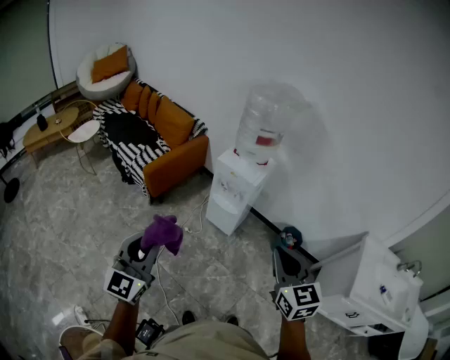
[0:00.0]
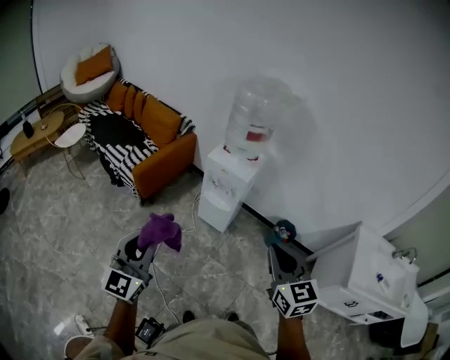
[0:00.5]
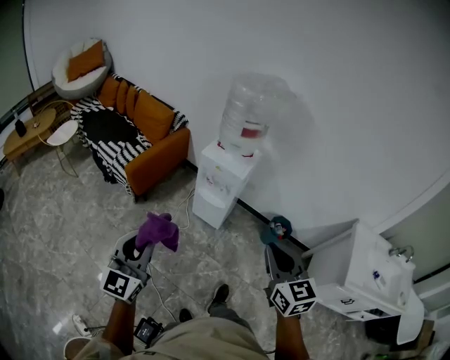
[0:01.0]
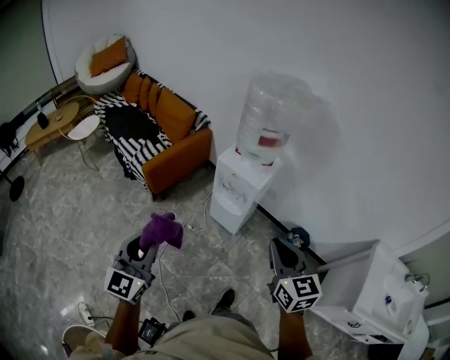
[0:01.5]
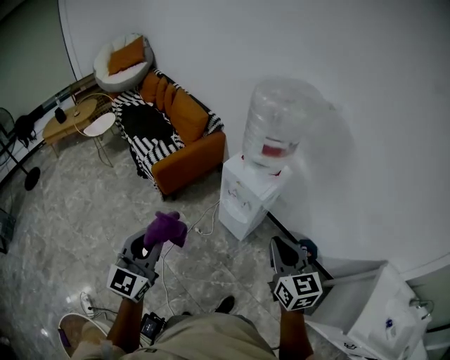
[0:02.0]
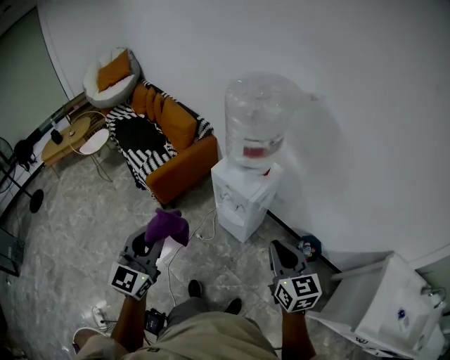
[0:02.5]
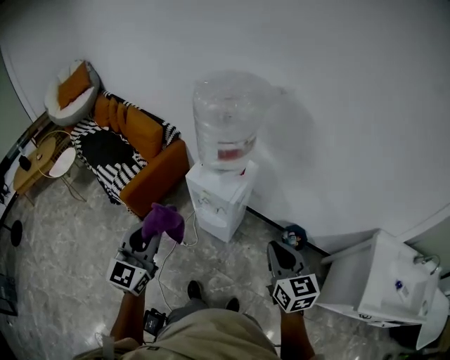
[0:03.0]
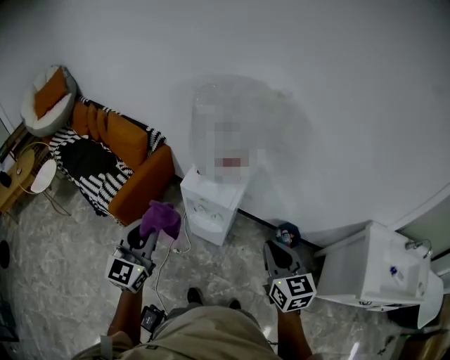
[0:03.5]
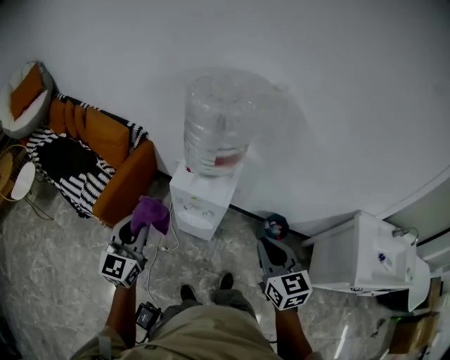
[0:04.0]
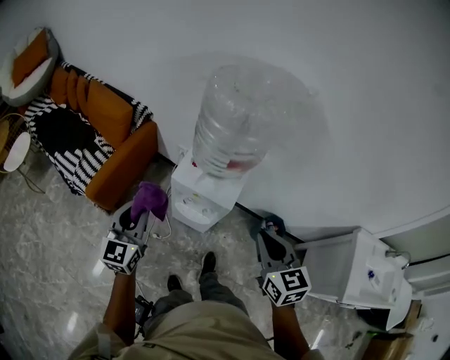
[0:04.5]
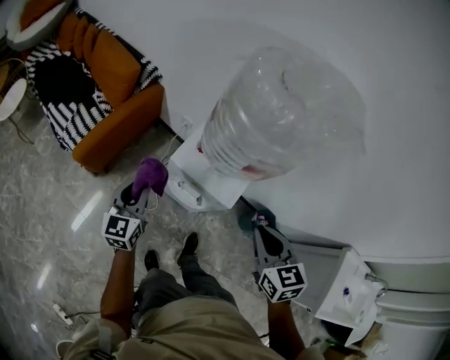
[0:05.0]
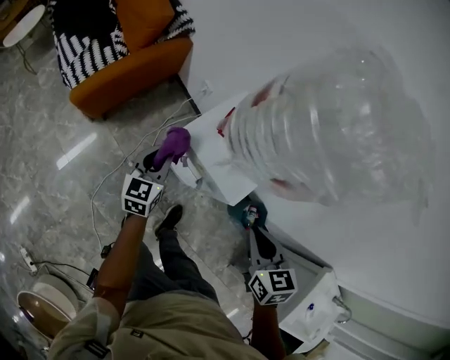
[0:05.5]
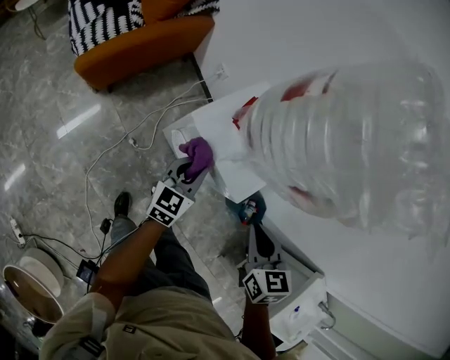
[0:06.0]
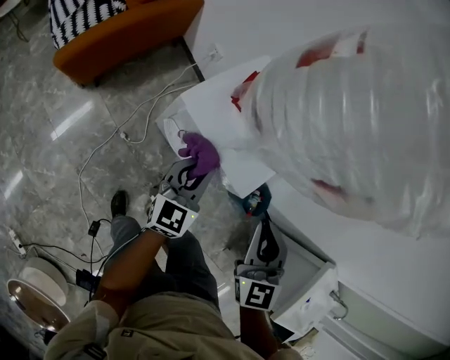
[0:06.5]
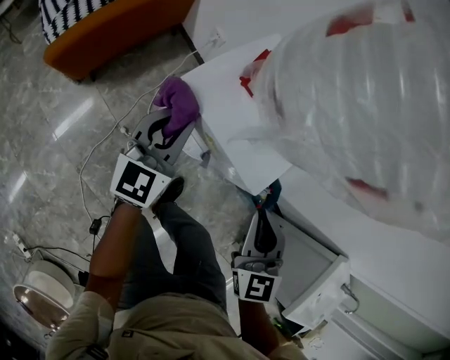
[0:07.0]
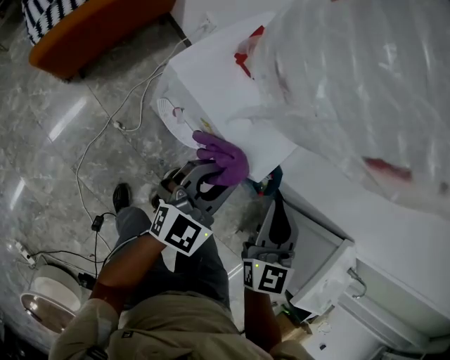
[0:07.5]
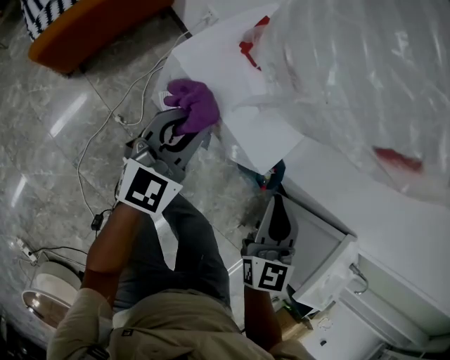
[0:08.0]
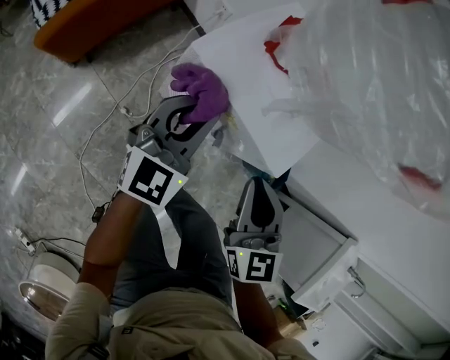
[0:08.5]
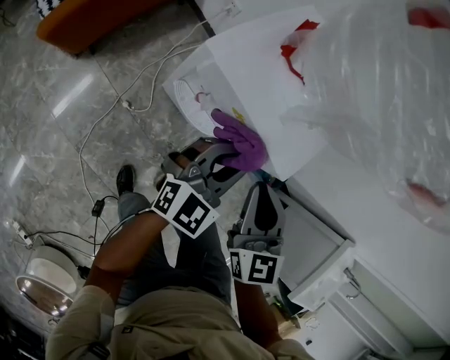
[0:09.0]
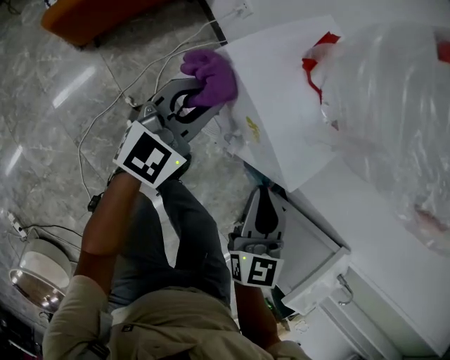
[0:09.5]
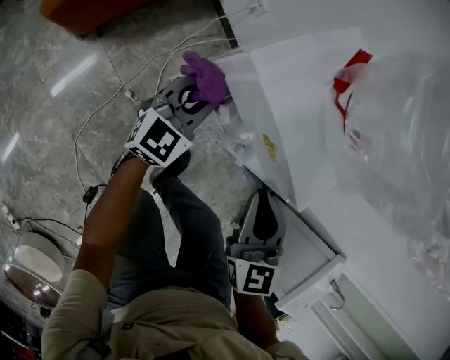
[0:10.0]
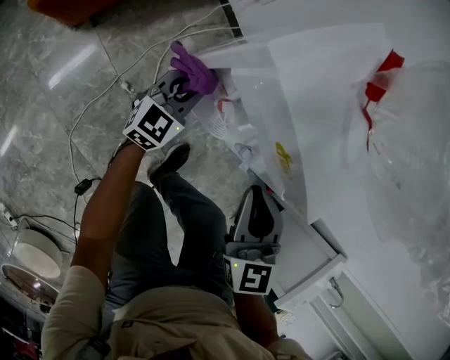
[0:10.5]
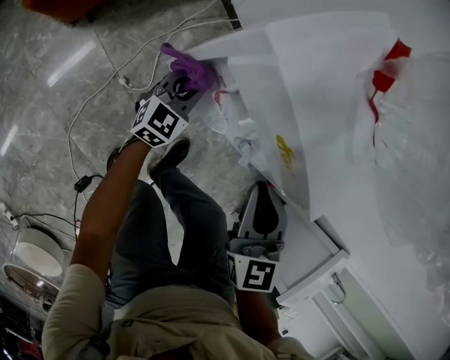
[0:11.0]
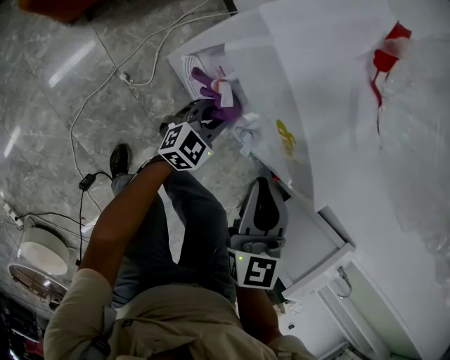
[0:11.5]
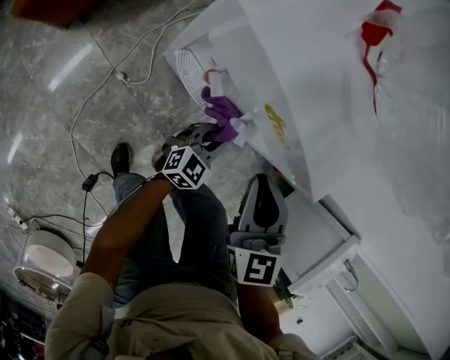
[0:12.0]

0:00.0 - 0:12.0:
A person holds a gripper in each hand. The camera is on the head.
0:00.0 - 0:02.0: The left gripper heads forward and to the right, covering approximately 15 cm, while the right gripper moves forward, approximately 20 cm.
0:02.0 - 0:04.0: The left gripper travels forward by some 30 cm, and turns by some 20 degrees. Meanwhile the right gripper heads forward, covering some 10 cm, goes to the right and returns, roughly 5 cm each way, and rotates some 30 degrees.
0:04.0 - 0:06.0: The right gripper heads downward and forward, covering roughly 30 cm, and changes its angle by approximately 30 degrees. The left gripper moves downward, to the right and forward, roughly 40 cm, and changes its angle by some 30 degrees.
0:06.0 - 0:08.0: The left gripper swings left and right, about 15 cm each way, with 2 reversals, and rotates roughly 30 degrees; the right gripper moves downward, roughly 10 cm, and swivels about 30 degrees.
0:08.0 - 0:10.0: The left gripper goes about 15 cm downward. Meanwhile the right gripper moves to the left and downward, approximately 15 cm.
0:10.0 - 0:12.0: The right gripper moves approximately 5 cm, while the left gripper travels to the right, downward and backward by about 30 cm, and swivels about 20 degrees.

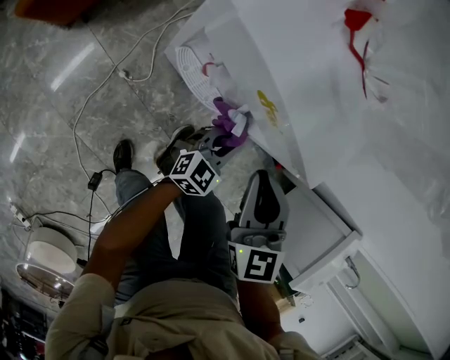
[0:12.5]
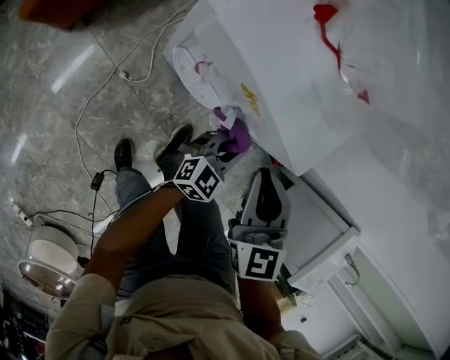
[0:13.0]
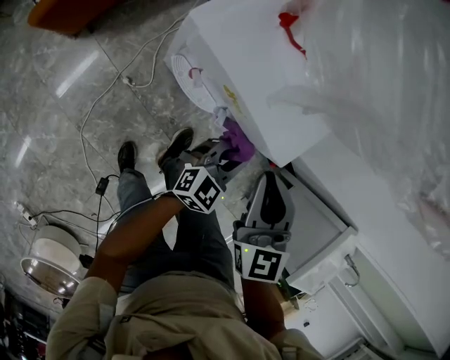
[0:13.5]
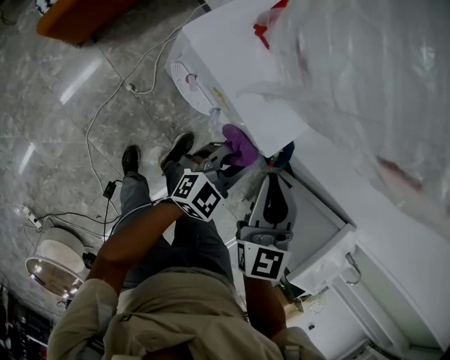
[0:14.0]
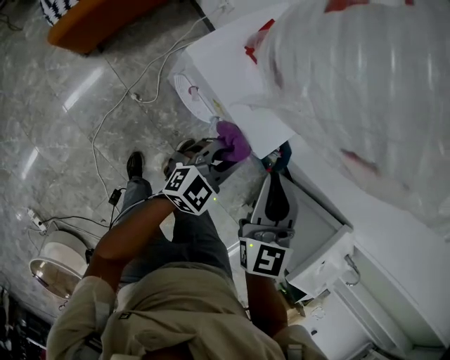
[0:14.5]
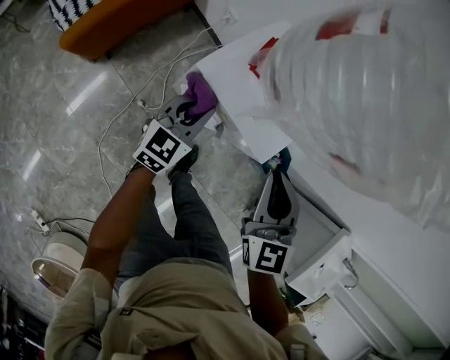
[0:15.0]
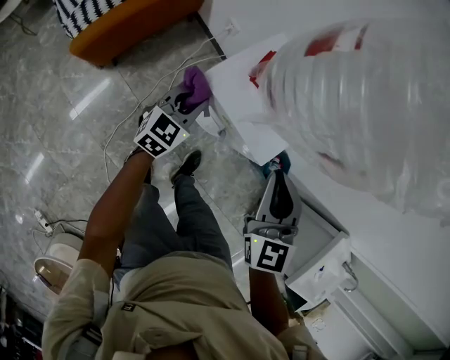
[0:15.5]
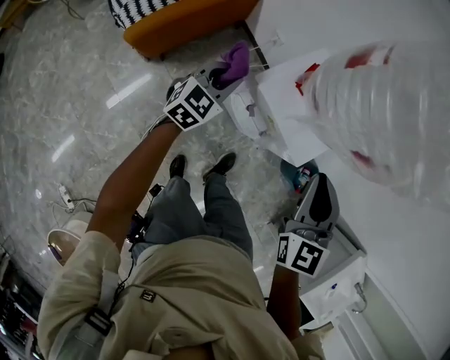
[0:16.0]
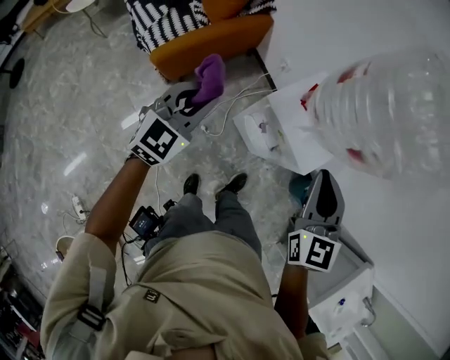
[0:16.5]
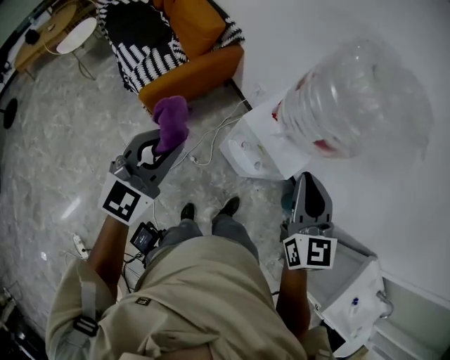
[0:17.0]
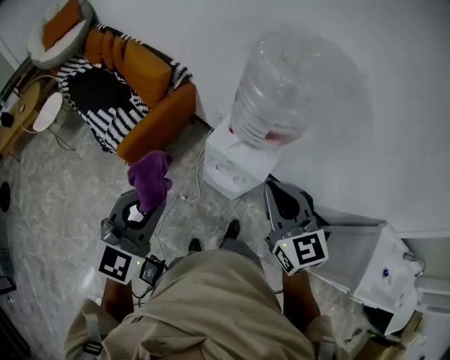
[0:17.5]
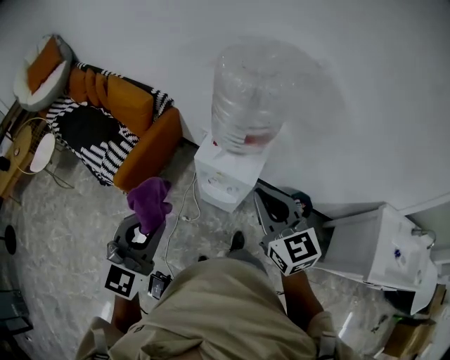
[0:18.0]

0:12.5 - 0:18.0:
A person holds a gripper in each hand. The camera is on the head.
0:12.5 - 0:14.5: Both grippers travel together upward, roughly 20 cm.
0:14.5 - 0:16.0: The left gripper goes some 30 cm to the left, and changes its angle by about 20 degrees; the right gripper moves upward and to the left, about 10 cm.
0:16.0 - 0:18.0: The right gripper travels upward and backward by about 20 cm. The left gripper goes roughly 50 cm upward and backward, and swivels approximately 30 degrees.

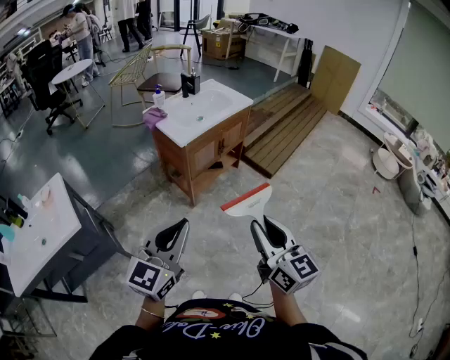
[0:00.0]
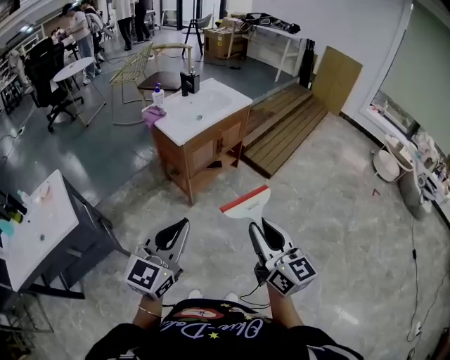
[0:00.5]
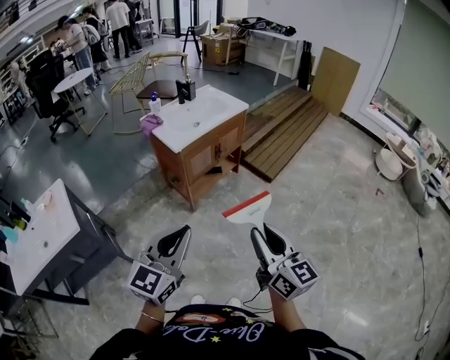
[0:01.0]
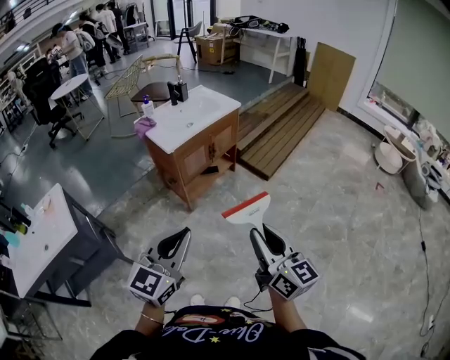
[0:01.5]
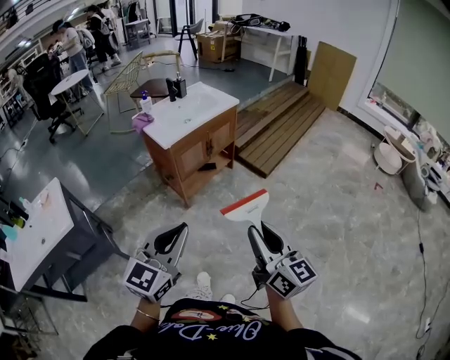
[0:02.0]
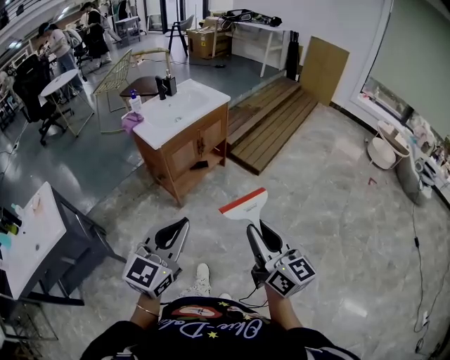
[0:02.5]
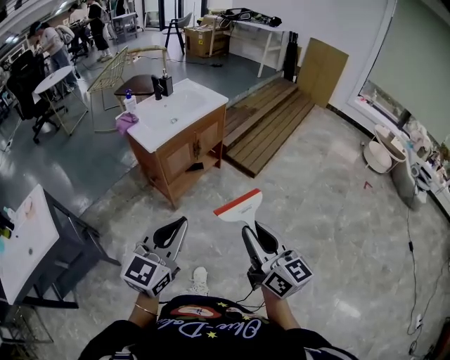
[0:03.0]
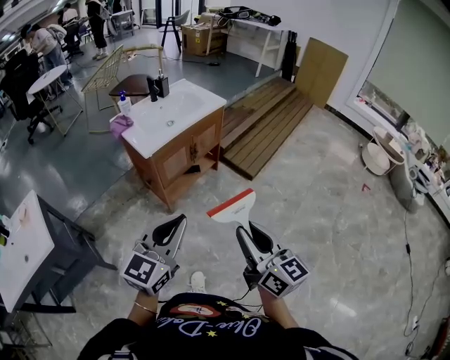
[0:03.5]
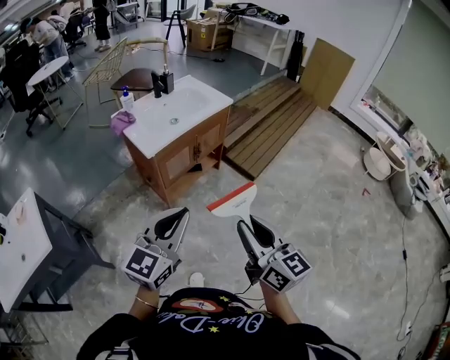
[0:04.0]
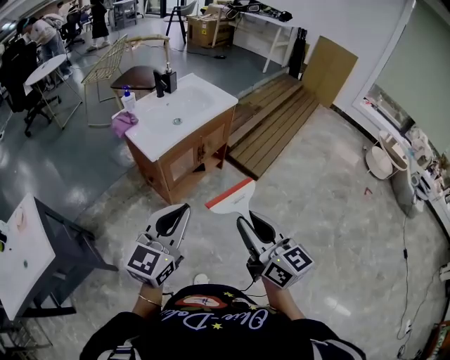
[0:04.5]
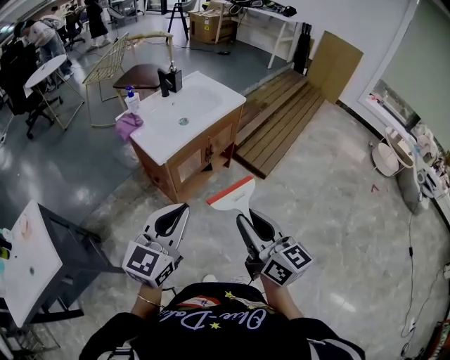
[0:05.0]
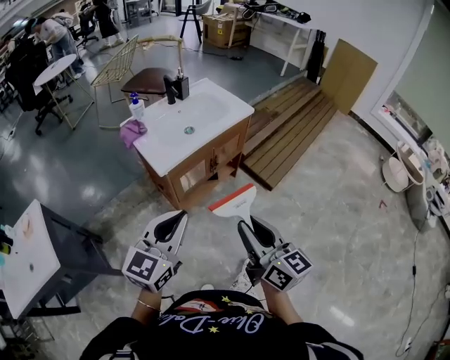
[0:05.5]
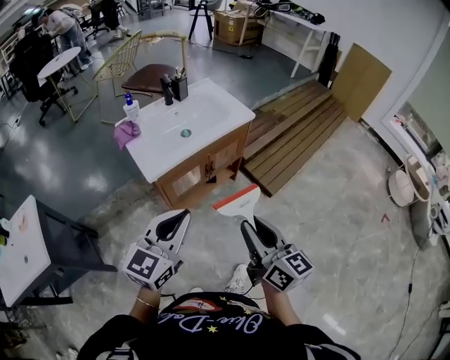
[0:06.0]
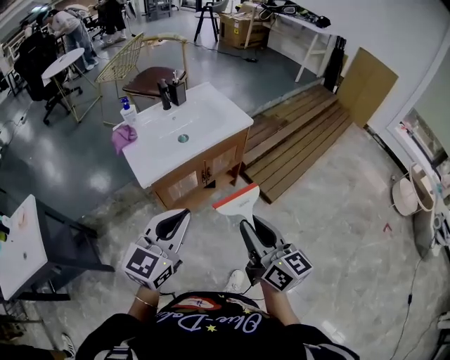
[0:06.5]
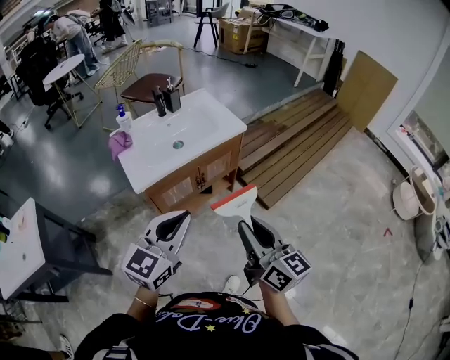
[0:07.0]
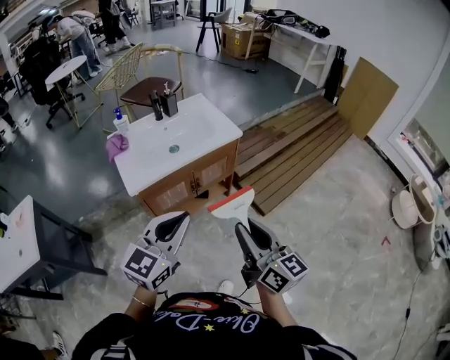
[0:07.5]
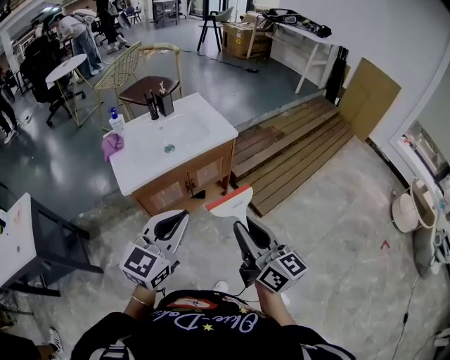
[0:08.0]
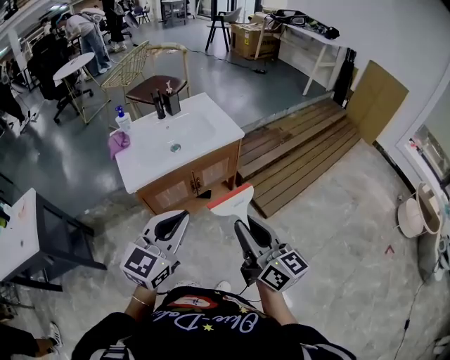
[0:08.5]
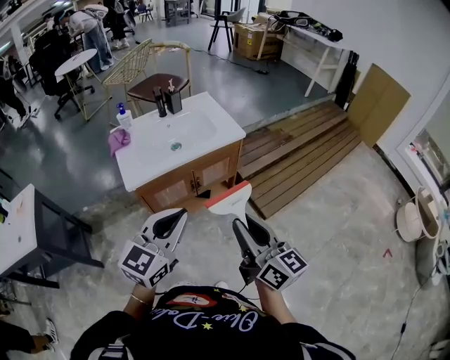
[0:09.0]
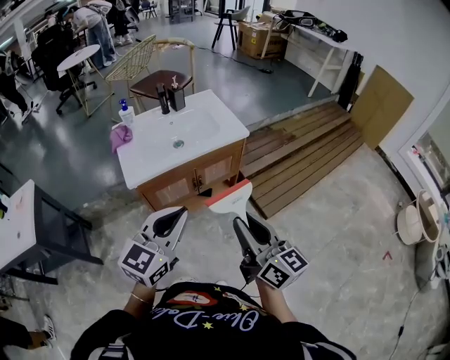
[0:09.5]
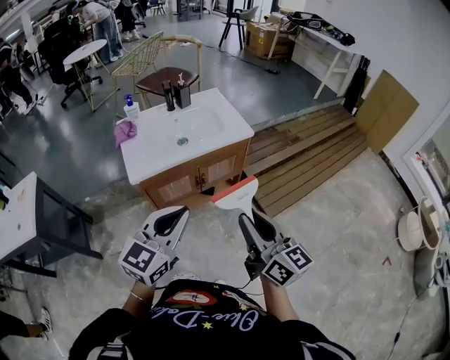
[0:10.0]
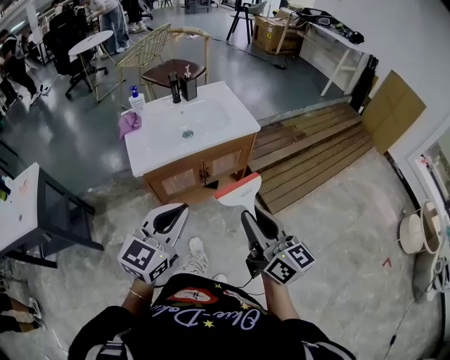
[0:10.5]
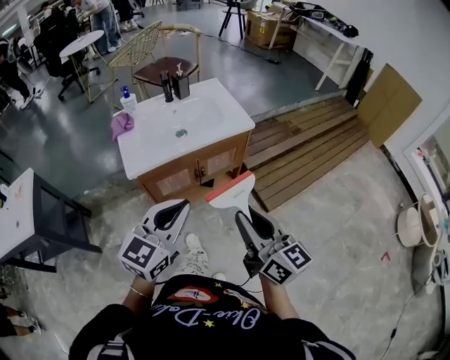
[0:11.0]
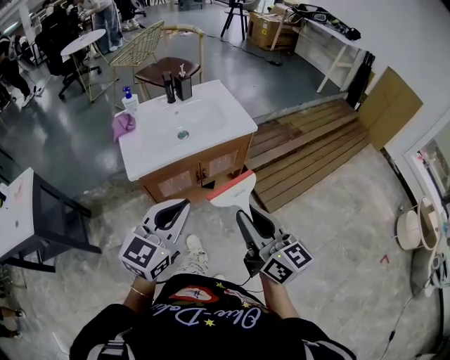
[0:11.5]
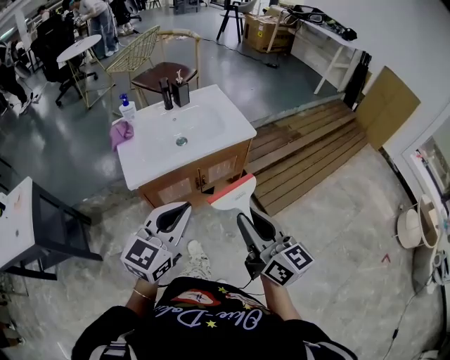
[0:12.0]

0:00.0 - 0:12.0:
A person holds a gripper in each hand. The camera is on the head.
0:00.0 - 0:02.0: The two grippers go some 10 cm to the right.
0:02.0 - 0:04.0: The two grippers go roughly 15 cm forward.
0:04.0 - 0:06.0: Both grippers travel together forward, roughly 15 cm.
0:06.0 - 0:08.0: The grippers both shift to the right and forward by approximately 15 cm.
0:08.0 - 0:12.0: The grippers make only small movements.
